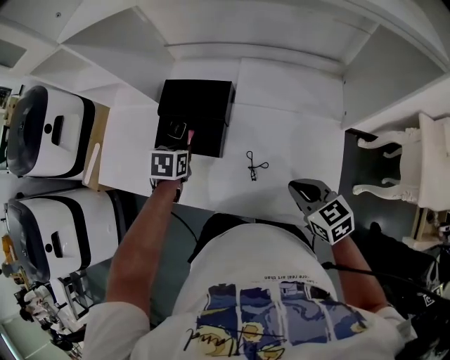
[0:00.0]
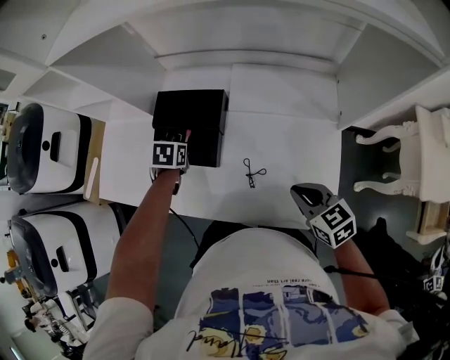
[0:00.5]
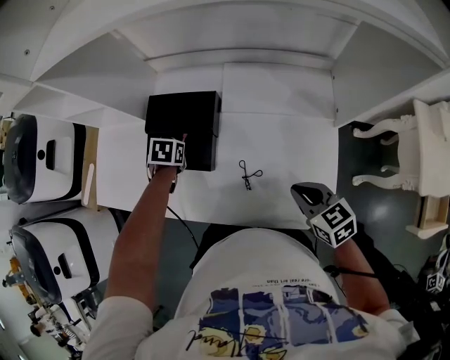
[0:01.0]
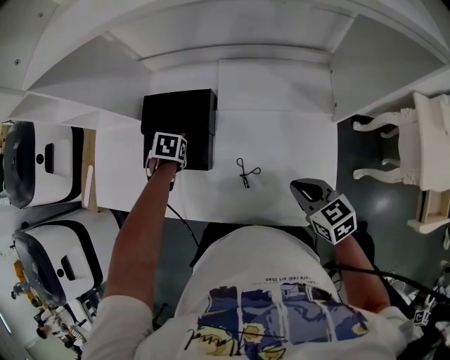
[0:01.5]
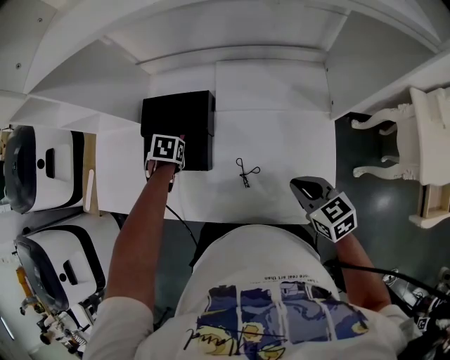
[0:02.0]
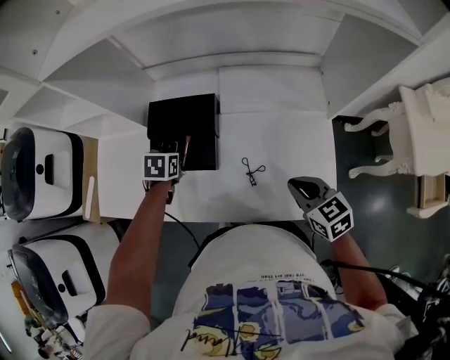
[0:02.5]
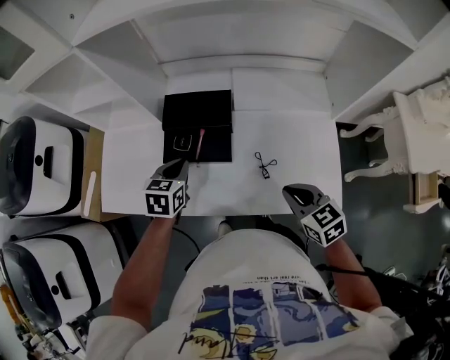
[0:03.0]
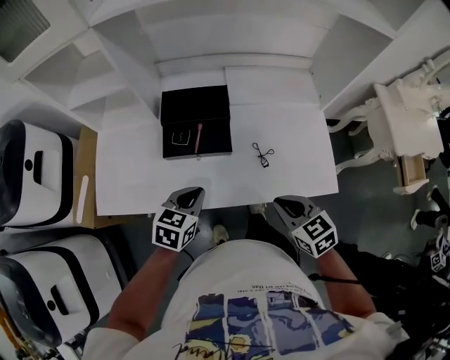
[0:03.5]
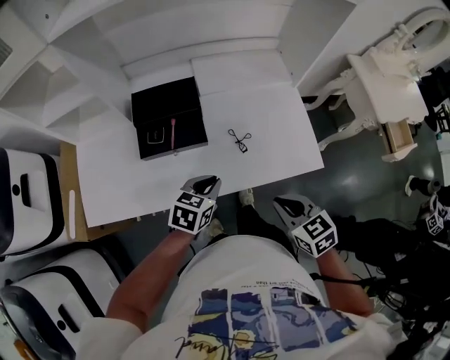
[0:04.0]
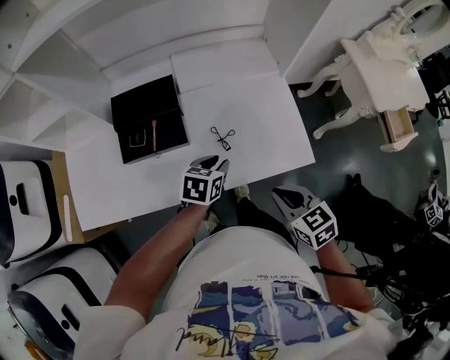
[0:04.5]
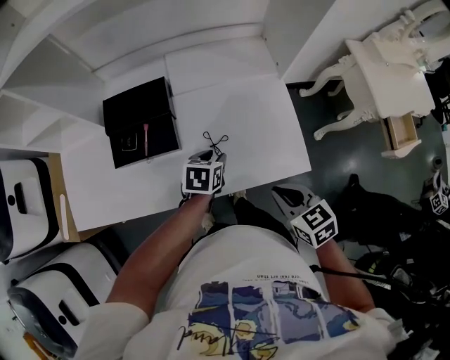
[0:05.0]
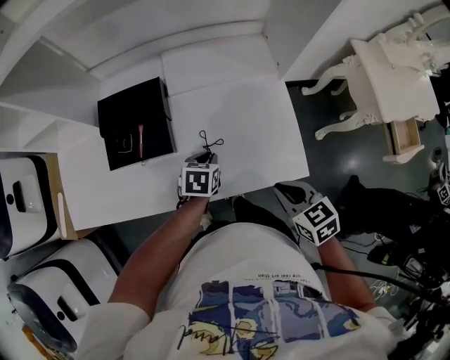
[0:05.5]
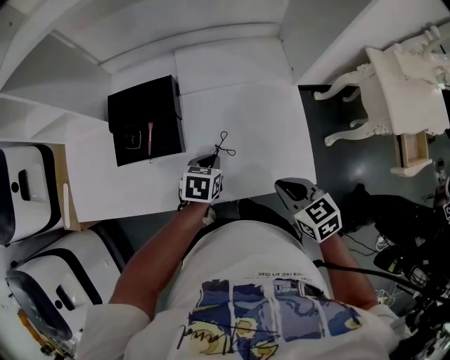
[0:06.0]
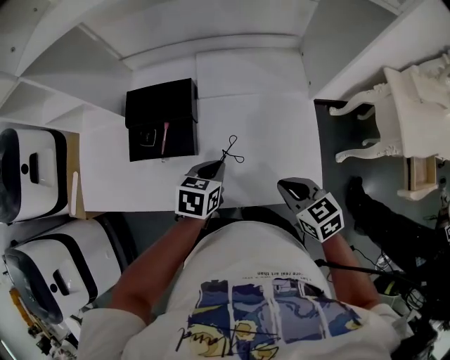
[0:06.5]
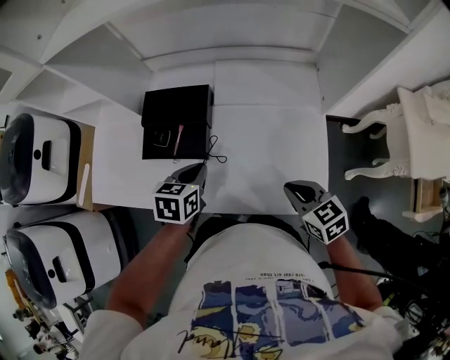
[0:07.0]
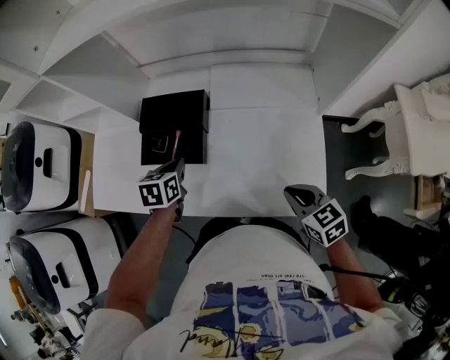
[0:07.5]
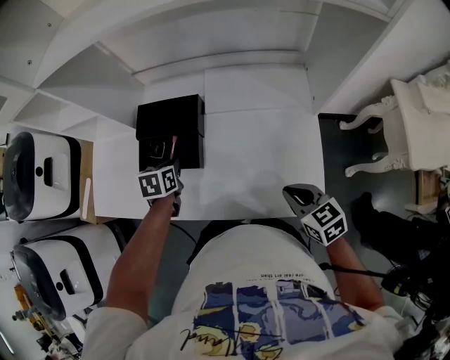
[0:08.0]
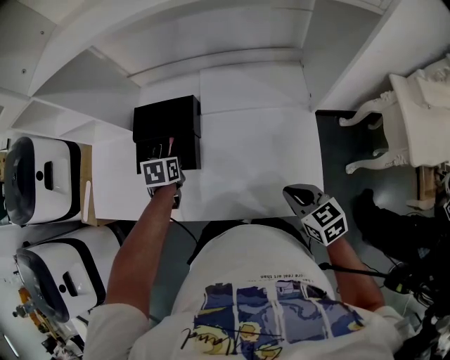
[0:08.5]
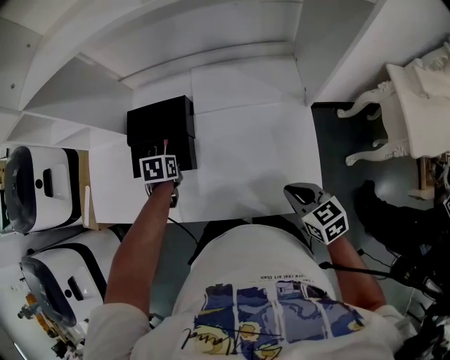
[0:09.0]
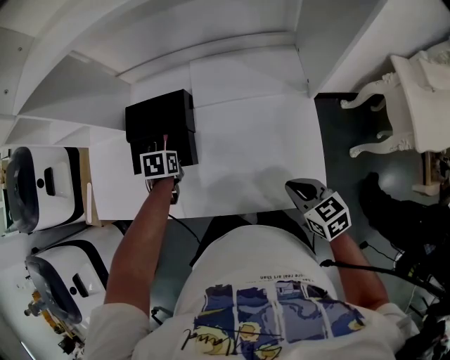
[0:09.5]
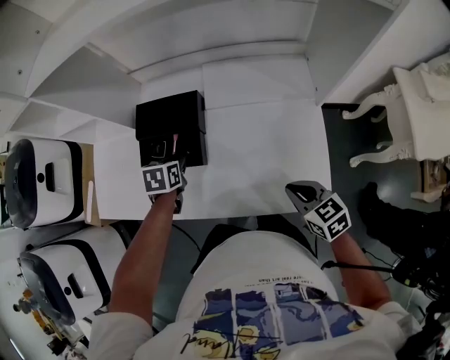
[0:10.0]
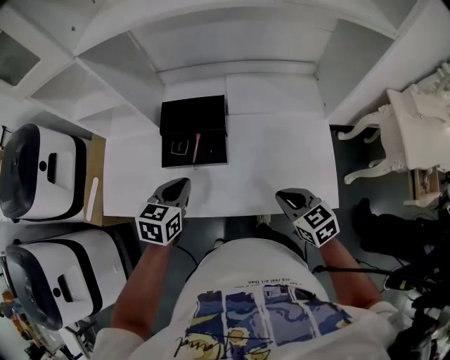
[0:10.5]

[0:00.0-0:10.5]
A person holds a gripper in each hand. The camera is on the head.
0:00.0 to 0:02.0: The left gripper travels downward by approximately 5 cm.
0:02.0 to 0:04.0: The right gripper moves some 20 cm. Meanwhile the left gripper shifts by some 25 cm, and angles its fingers upward, by some 40 degrees.
0:04.0 to 0:06.5: Both grippers travel together forward and to the right, some 15 cm. The left gripper opens, then closes again.
0:06.5 to 0:08.5: The left gripper goes some 15 cm to the left and forward, and turns by some 20 degrees.
0:08.5 to 0:10.5: The right gripper goes approximately 10 cm to the left. Meanwhile the left gripper heads upward, backward and to the left, covering approximately 15 cm, and turns by some 30 degrees.

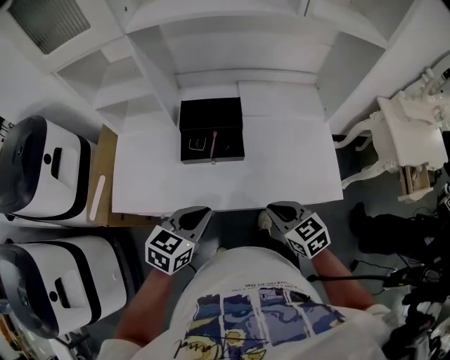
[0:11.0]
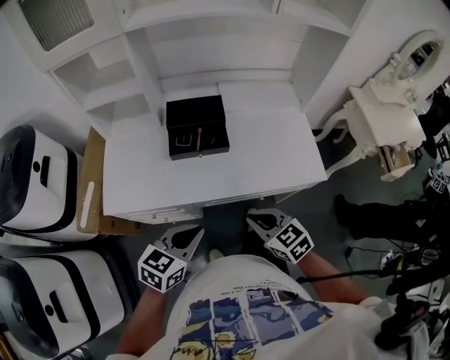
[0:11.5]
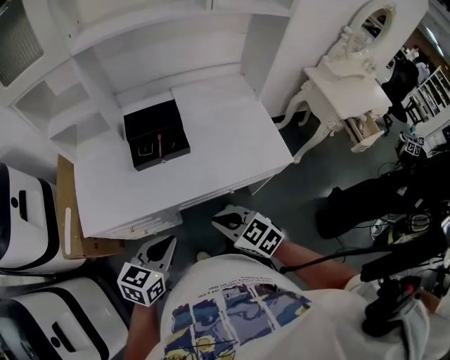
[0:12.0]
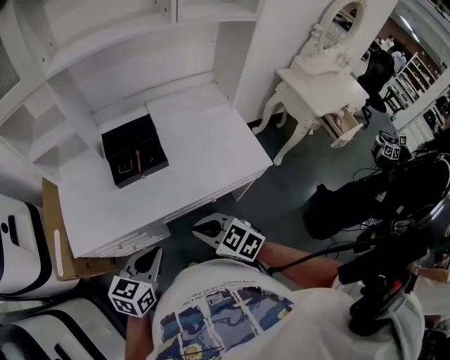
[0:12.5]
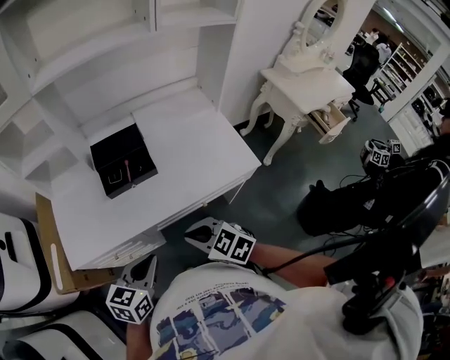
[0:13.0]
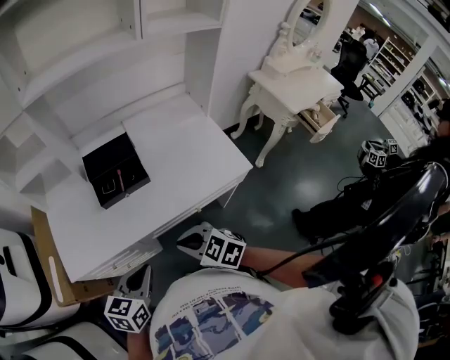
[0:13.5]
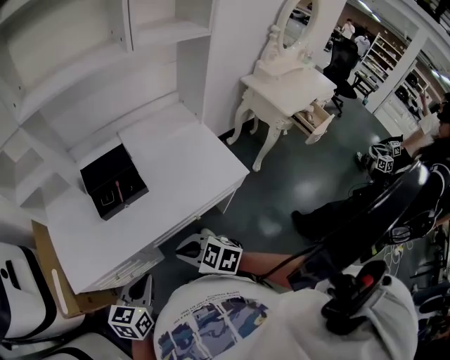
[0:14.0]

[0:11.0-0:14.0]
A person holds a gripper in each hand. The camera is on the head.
0:11.0 to 0:12.5: The left gripper heads backward, covering roughly 10 cm, while the right gripper is displaced backward and to the left by about 15 cm.
0:12.5 to 0:14.0: The grippers make only small movements.

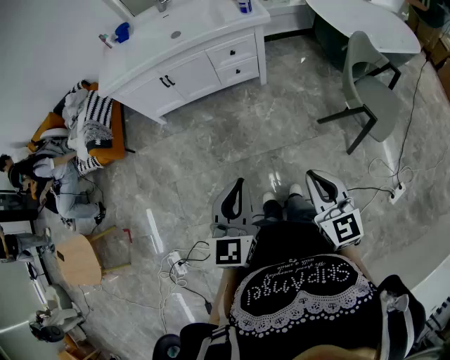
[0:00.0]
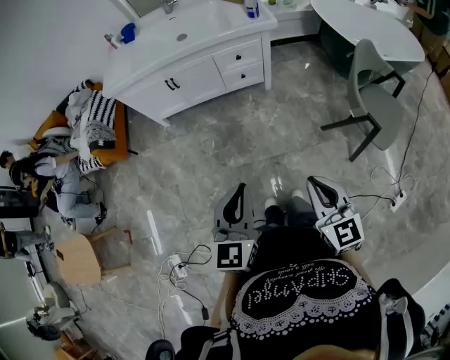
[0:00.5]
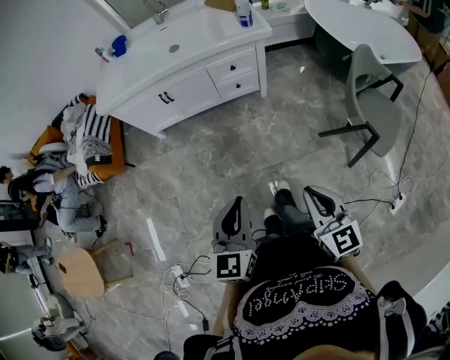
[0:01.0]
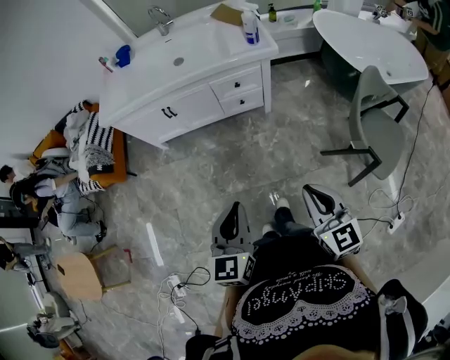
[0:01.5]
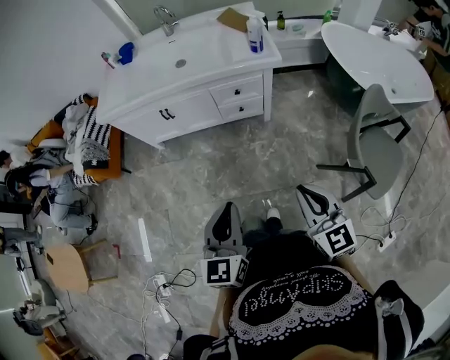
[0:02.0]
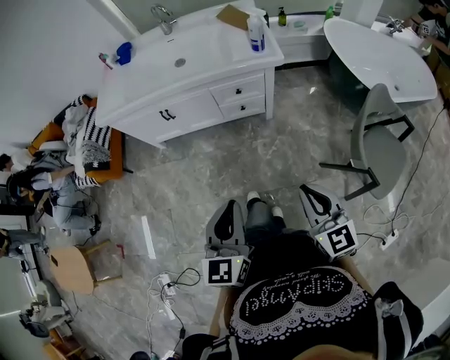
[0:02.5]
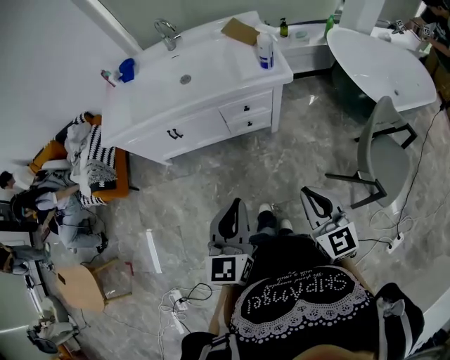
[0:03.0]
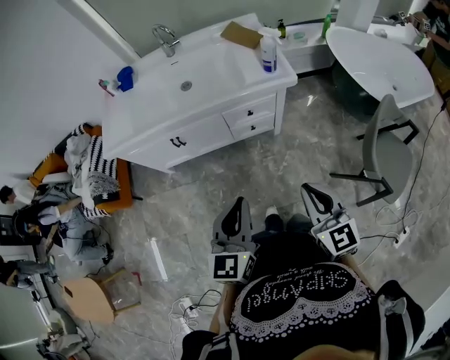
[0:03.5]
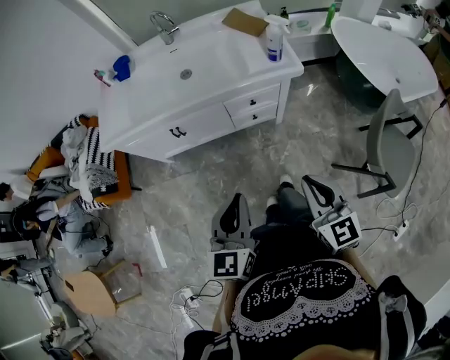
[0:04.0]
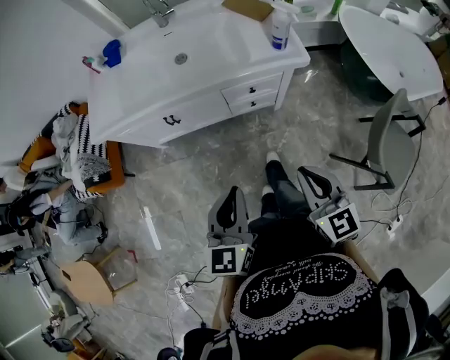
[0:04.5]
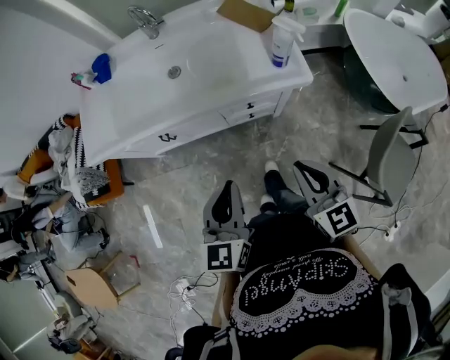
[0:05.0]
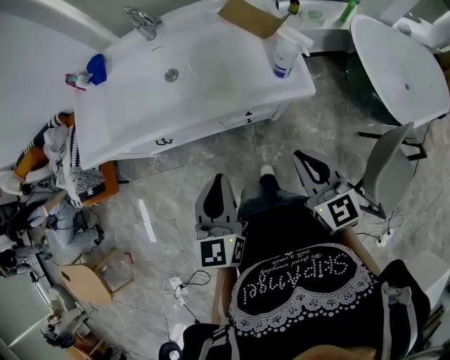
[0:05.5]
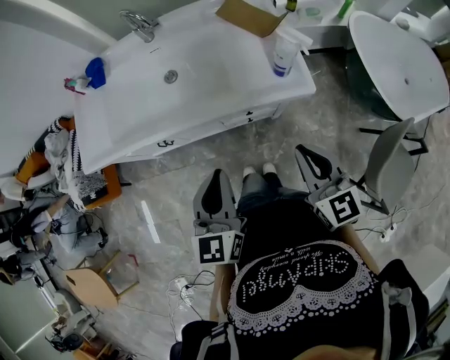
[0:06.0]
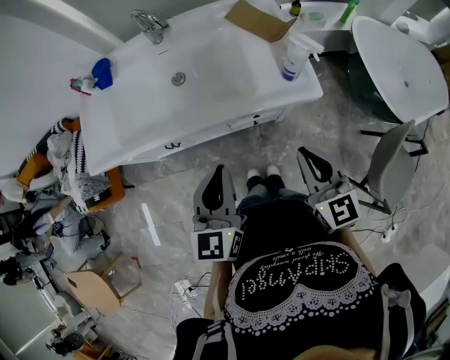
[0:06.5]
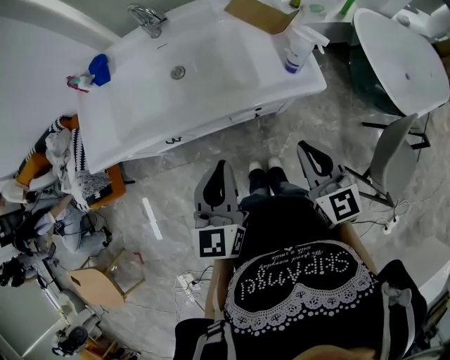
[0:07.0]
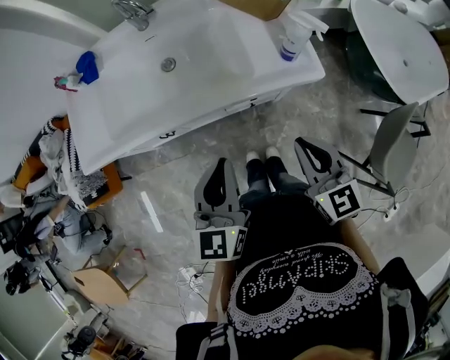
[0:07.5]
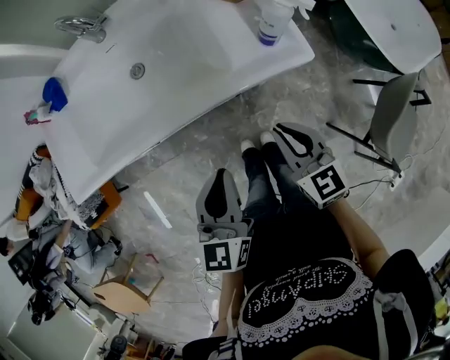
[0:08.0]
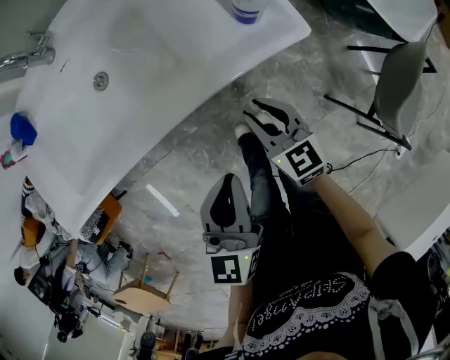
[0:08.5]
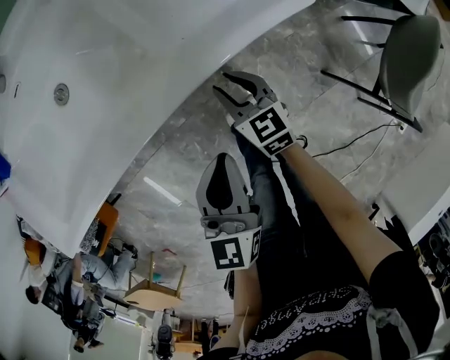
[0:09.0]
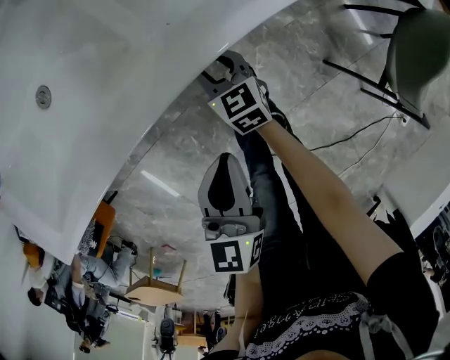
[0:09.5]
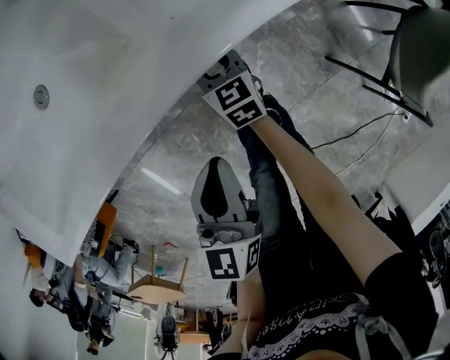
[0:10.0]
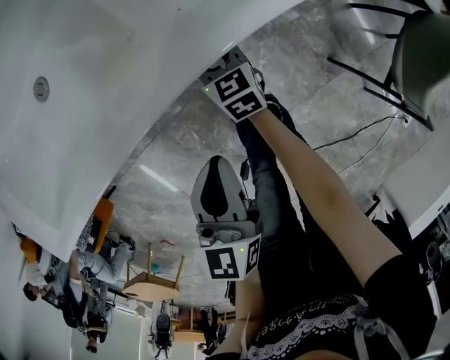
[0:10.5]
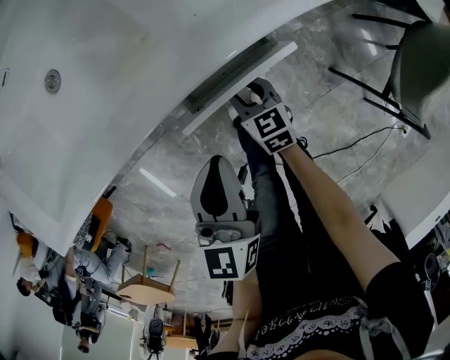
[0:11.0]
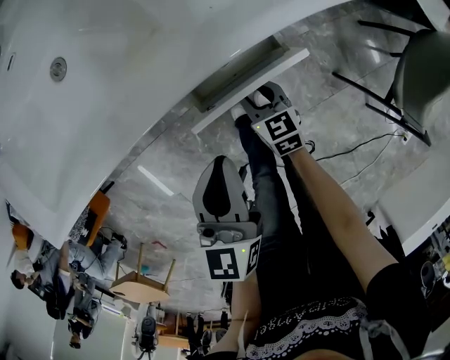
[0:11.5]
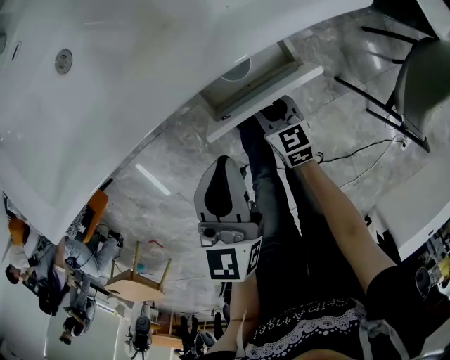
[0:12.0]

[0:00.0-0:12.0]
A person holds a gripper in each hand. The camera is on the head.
0:00.0 to 0:02.0: Both grippers move forward, about 15 cm.
0:02.0 to 0:04.0: The right gripper shifts roughly 15 cm forward and to the left. Meanwhile the left gripper heads forward, covering approximately 15 cm.
0:04.0 to 0:06.0: The grippers both shift forward by some 25 cm.
0:06.0 to 0:08.0: The right gripper moves downward, some 10 cm; the left gripper shifts by some 5 cm.
0:08.0 to 0:10.0: The right gripper goes roughly 35 cm downward and forward, and opens up; the left gripper travels downward by some 20 cm.
0:10.0 to 0:12.0: The right gripper is displaced backward by some 15 cm.

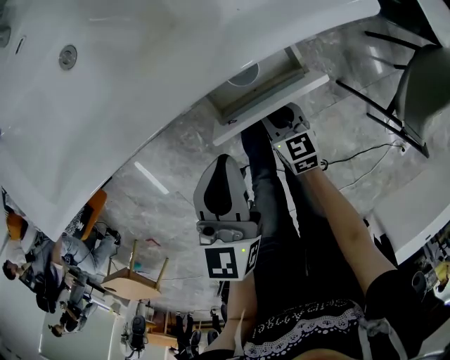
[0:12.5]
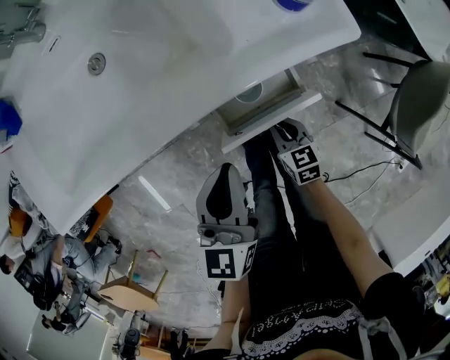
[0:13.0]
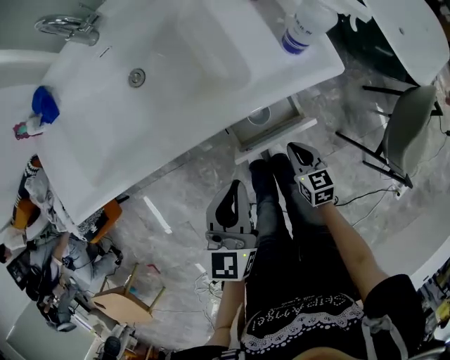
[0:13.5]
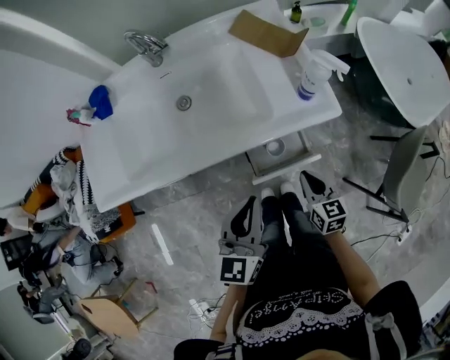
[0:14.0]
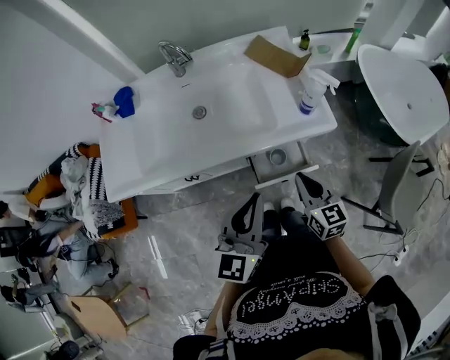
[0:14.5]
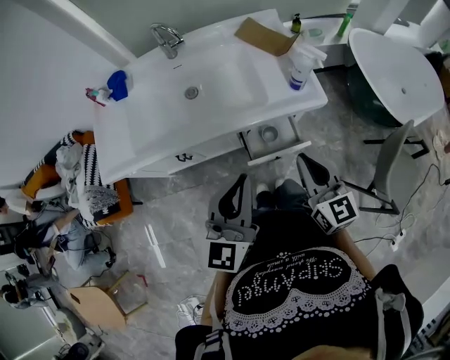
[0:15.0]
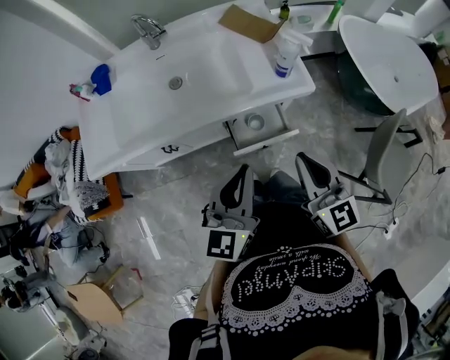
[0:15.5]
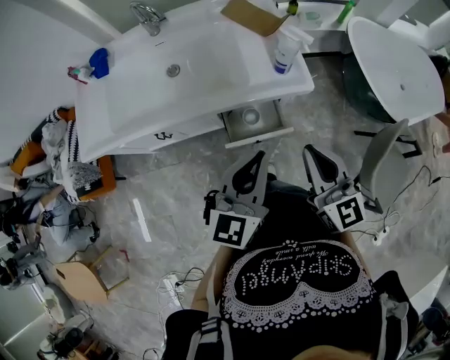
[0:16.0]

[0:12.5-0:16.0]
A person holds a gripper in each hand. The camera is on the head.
0:12.5 to 0:14.5: The grippers both shift upward by some 30 cm. The left gripper turns by about 20 degrees; the right gripper changes its angle by roughly 20 degrees, and closes.
0:14.5 to 0:16.0: The right gripper heads upward, to the right and backward, covering about 15 cm; the left gripper heads to the right, covering roughly 10 cm.
